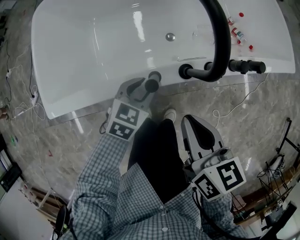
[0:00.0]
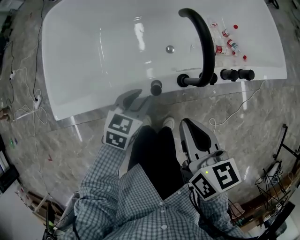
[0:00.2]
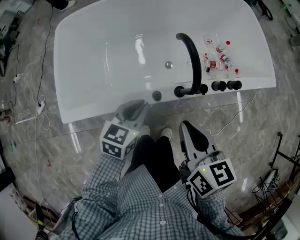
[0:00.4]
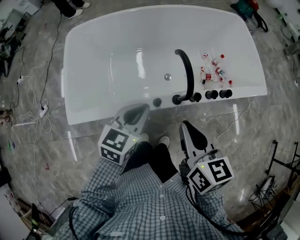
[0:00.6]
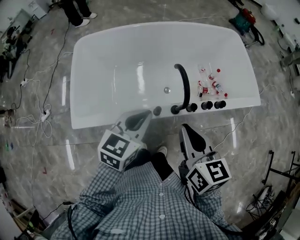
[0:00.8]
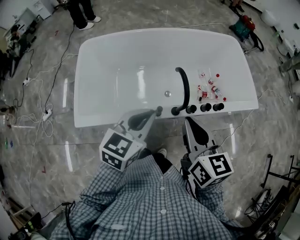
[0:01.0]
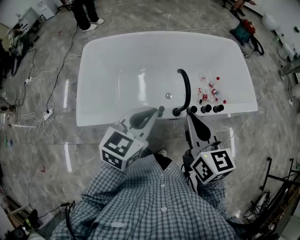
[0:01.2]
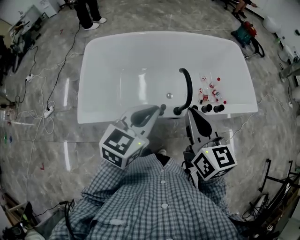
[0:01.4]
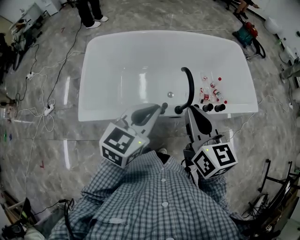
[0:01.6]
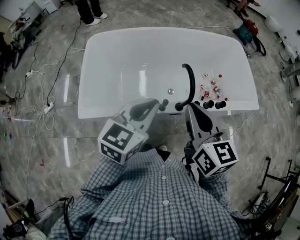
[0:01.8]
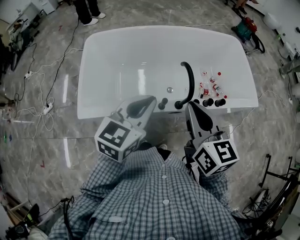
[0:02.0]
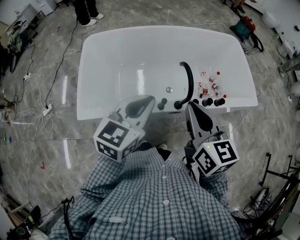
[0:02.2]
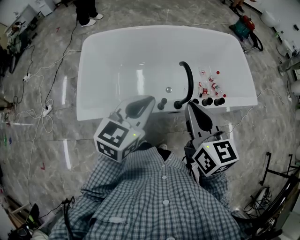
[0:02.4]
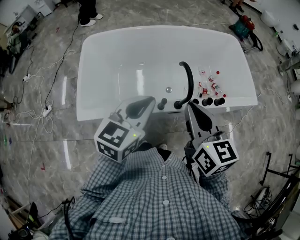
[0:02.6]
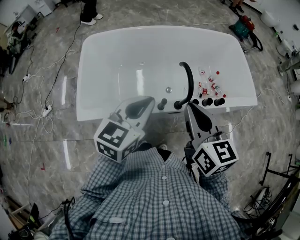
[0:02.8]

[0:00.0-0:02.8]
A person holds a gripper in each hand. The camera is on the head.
0:00.0 to 0:01.4: The grippers both shift upward by about 40 cm. The left gripper rotates roughly 30 degrees, and closes its fingers. Meanwhile the right gripper swivels roughly 30 degrees.
0:01.4 to 0:02.8: The grippers make only small movements.

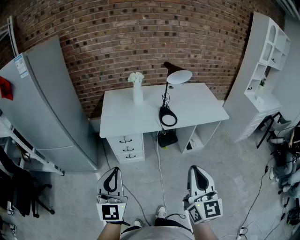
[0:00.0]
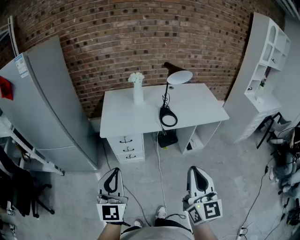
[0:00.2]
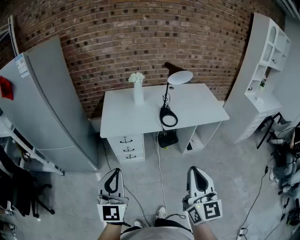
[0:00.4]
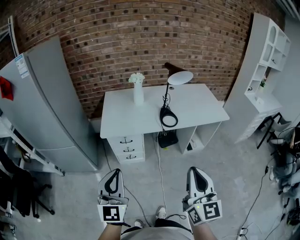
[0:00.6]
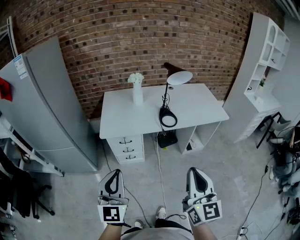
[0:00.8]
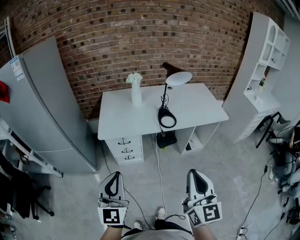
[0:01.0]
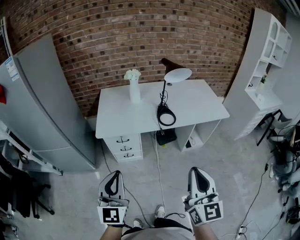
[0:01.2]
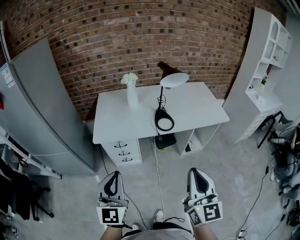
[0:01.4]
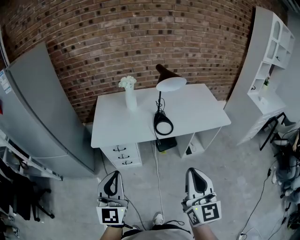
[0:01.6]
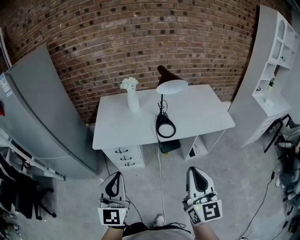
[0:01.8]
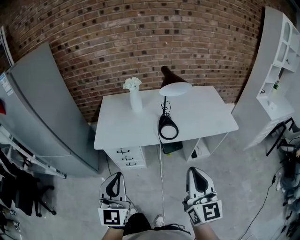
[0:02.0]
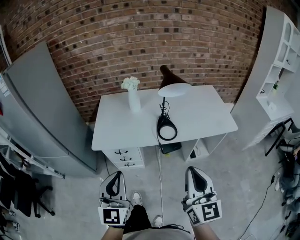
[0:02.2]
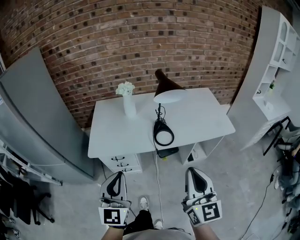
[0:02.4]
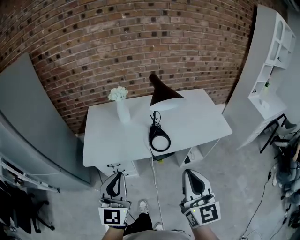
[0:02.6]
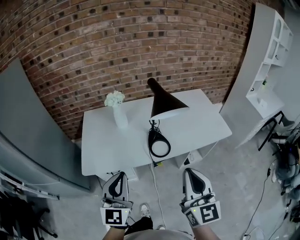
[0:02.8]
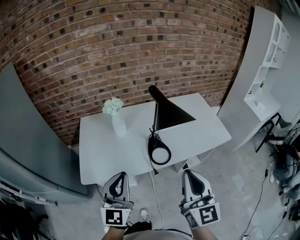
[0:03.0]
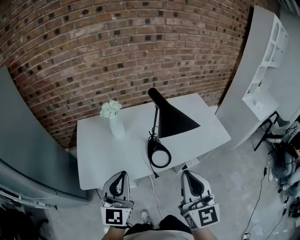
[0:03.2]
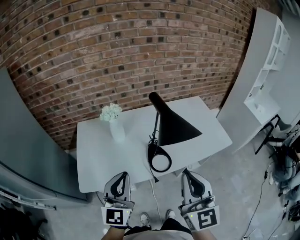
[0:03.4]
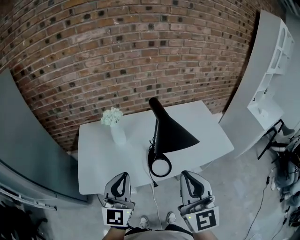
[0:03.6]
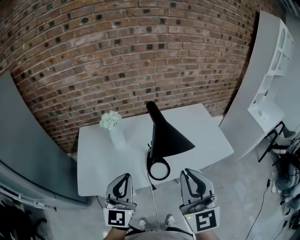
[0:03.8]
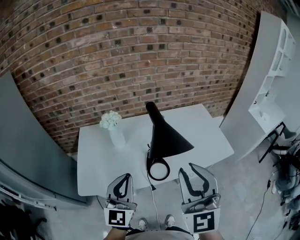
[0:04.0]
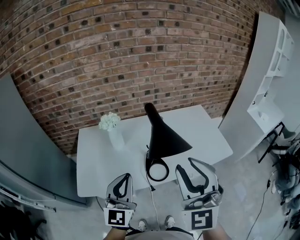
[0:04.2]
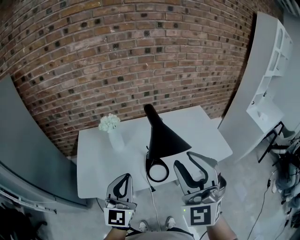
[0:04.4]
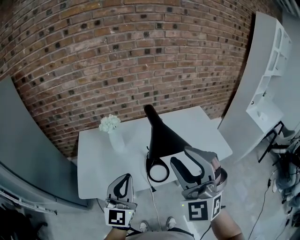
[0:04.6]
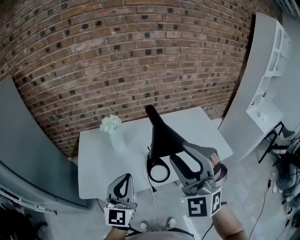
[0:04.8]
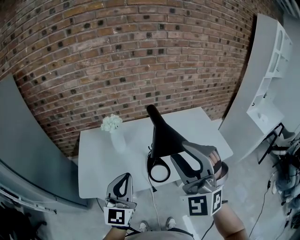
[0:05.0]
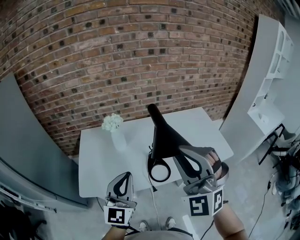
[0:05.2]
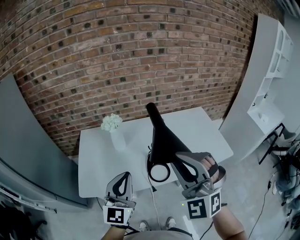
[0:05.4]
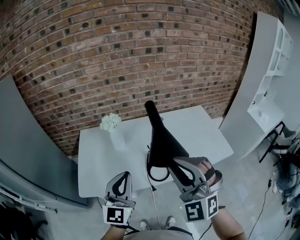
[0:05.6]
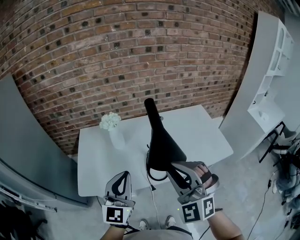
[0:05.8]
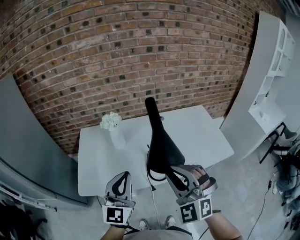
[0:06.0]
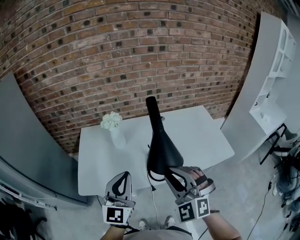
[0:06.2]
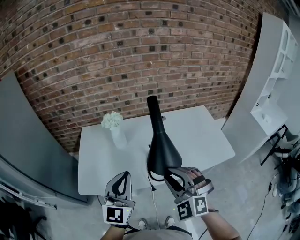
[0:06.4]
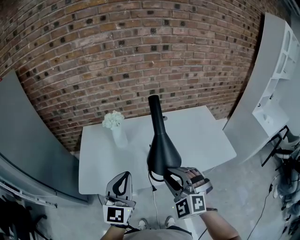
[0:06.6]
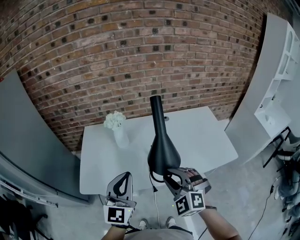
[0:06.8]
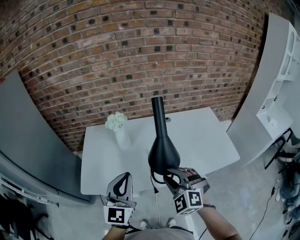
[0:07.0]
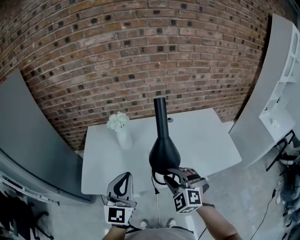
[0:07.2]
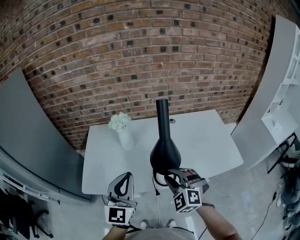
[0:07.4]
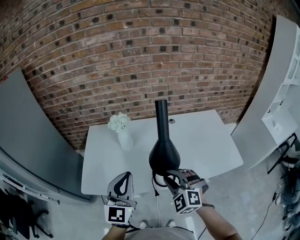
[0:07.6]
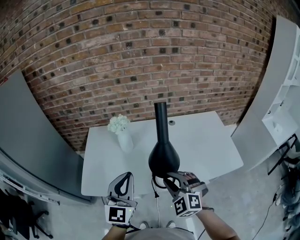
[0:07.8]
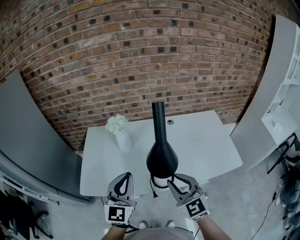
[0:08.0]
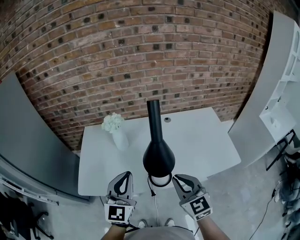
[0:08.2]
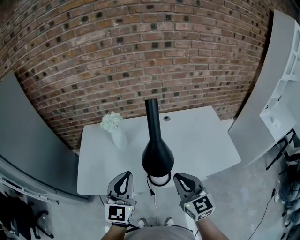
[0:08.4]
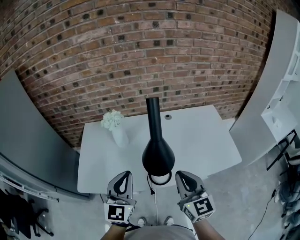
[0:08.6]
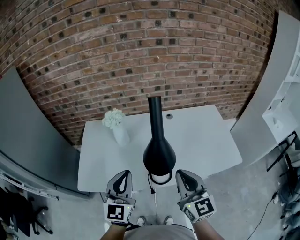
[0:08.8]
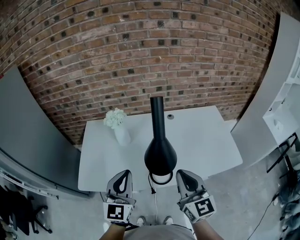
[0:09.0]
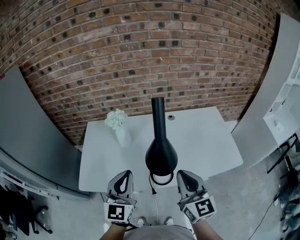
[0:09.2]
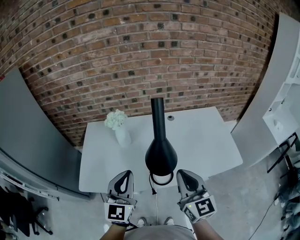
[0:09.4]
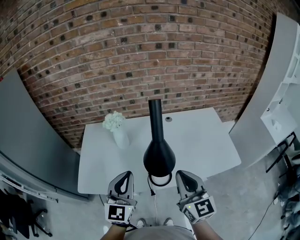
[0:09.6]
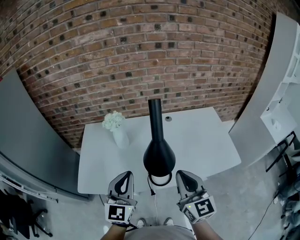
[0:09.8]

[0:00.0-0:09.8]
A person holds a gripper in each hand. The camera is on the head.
0:00.0 to 0:01.4: Both grippers move forward, some 5 cm.
0:01.4 to 0:02.8: Both grippers travel together forward, roughly 20 cm.
0:02.8 to 0:04.2: The right gripper travels forward and upward by about 15 cm, twists roughly 40 degrees counterclockwise, seen from behind, and opens its fingers, while the left gripper shifts some 15 cm forward.
0:04.2 to 0:05.6: The right gripper ends up some 5 cm from where it was, and rotates about 20 degrees.
0:05.6 to 0:07.0: The right gripper shifts approximately 15 cm downward, and changes its angle by some 20 degrees.
0:07.0 to 0:08.4: The right gripper goes about 5 cm to the right, twists approximately 50 degrees clockwise, seen from behind, and closes its fingers; the left gripper changes place by approximately 5 cm.
0:08.4 to 0:09.8: The grippers make only small movements.

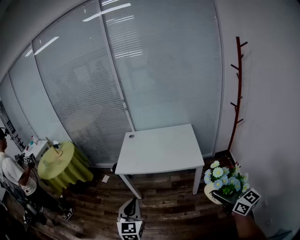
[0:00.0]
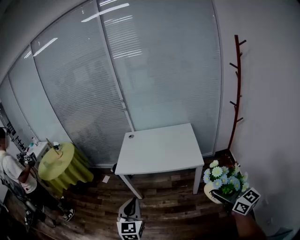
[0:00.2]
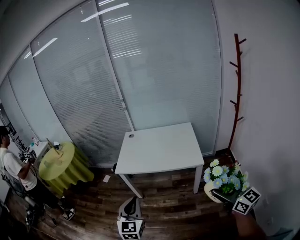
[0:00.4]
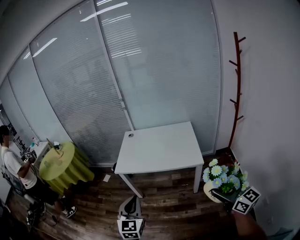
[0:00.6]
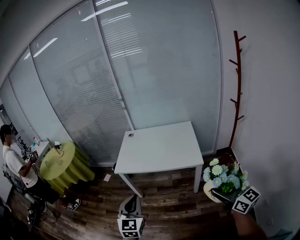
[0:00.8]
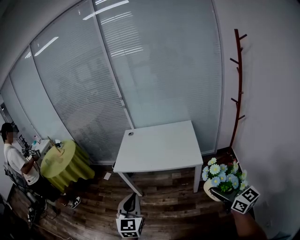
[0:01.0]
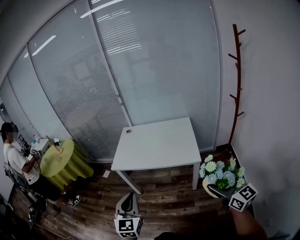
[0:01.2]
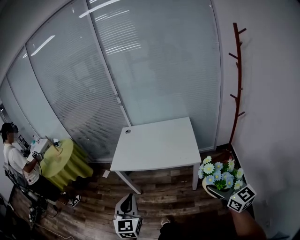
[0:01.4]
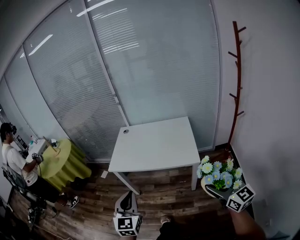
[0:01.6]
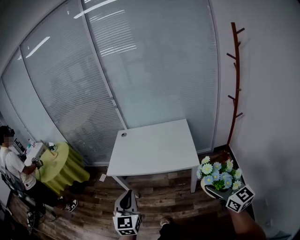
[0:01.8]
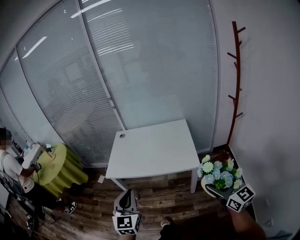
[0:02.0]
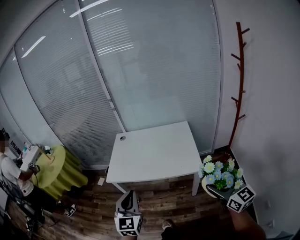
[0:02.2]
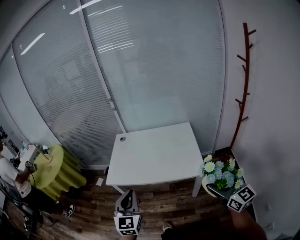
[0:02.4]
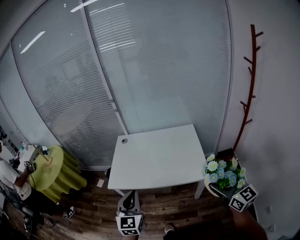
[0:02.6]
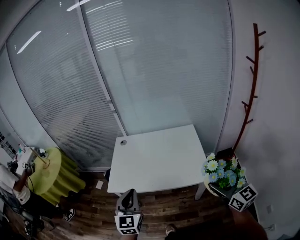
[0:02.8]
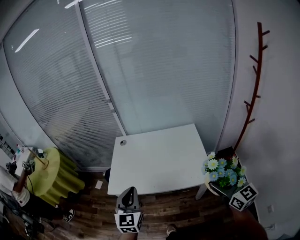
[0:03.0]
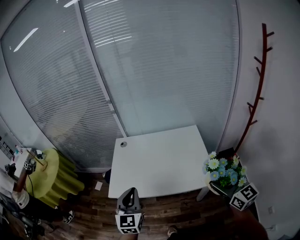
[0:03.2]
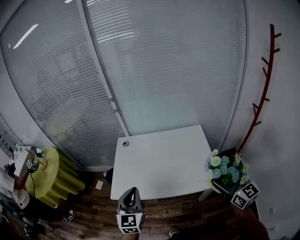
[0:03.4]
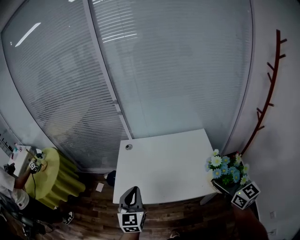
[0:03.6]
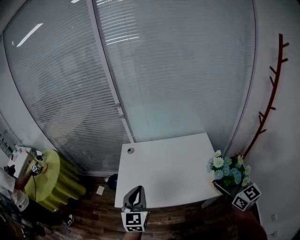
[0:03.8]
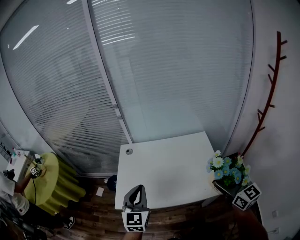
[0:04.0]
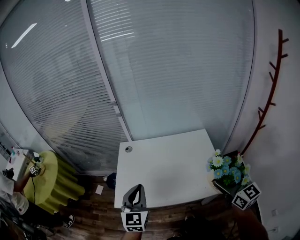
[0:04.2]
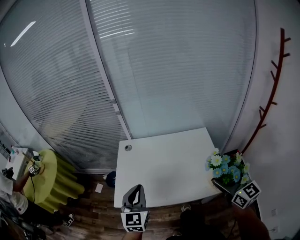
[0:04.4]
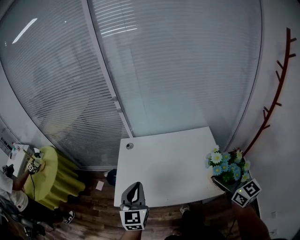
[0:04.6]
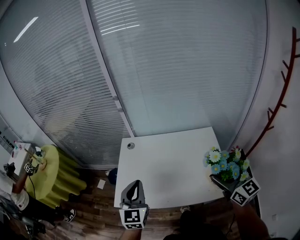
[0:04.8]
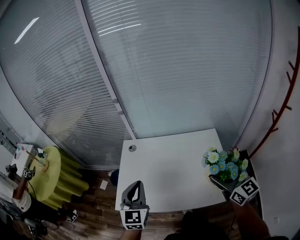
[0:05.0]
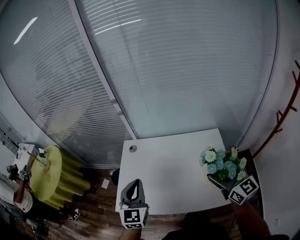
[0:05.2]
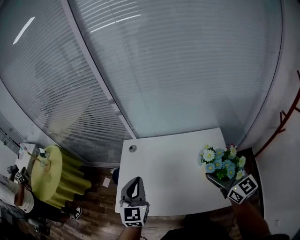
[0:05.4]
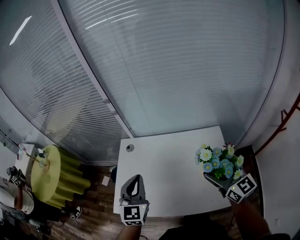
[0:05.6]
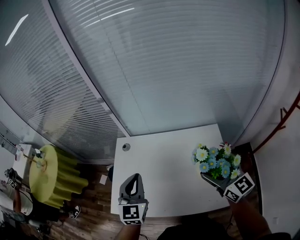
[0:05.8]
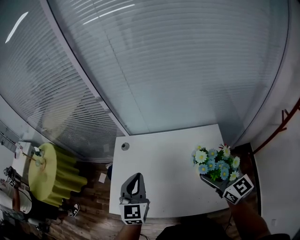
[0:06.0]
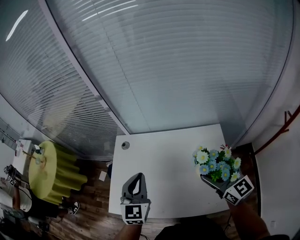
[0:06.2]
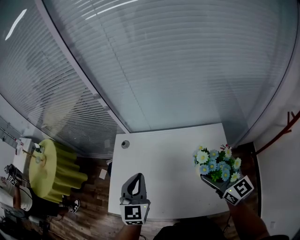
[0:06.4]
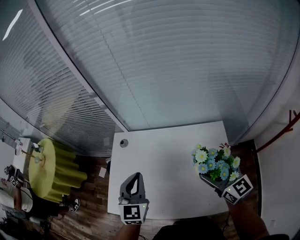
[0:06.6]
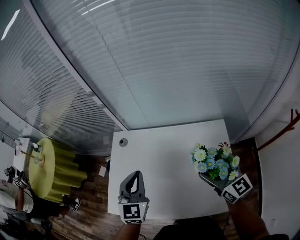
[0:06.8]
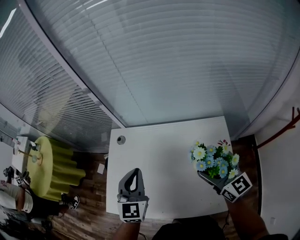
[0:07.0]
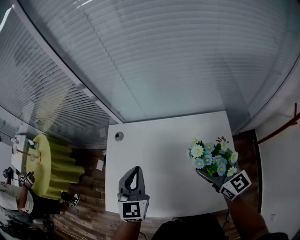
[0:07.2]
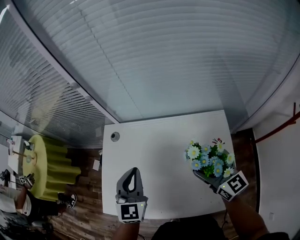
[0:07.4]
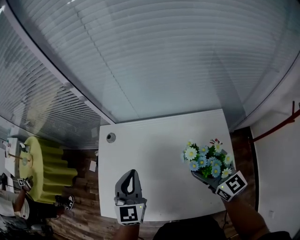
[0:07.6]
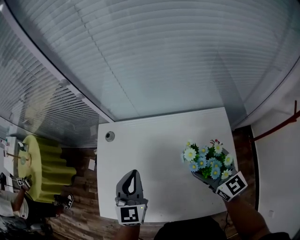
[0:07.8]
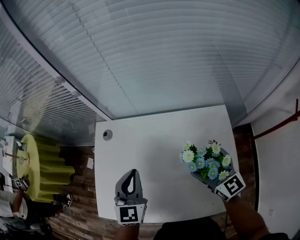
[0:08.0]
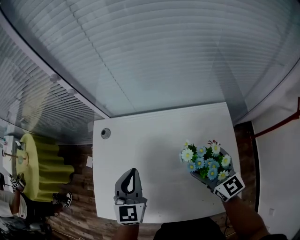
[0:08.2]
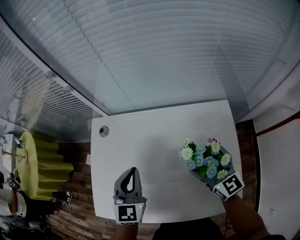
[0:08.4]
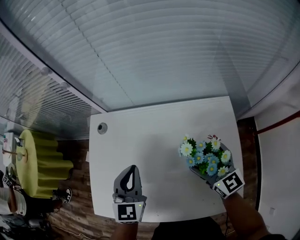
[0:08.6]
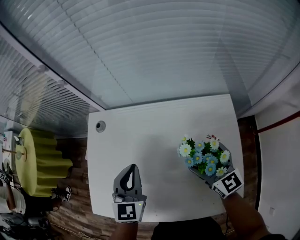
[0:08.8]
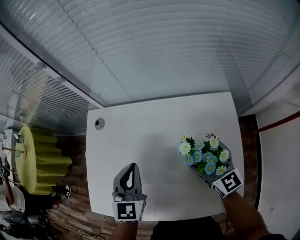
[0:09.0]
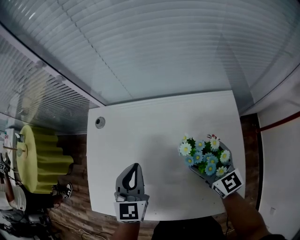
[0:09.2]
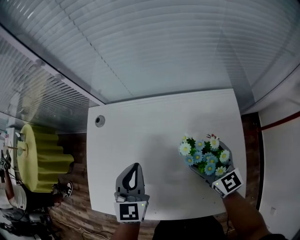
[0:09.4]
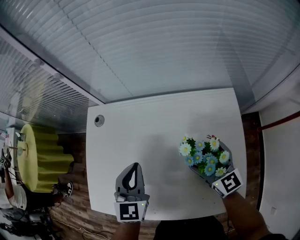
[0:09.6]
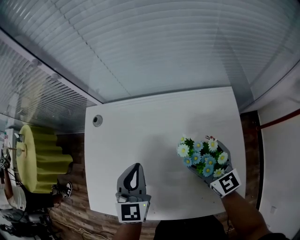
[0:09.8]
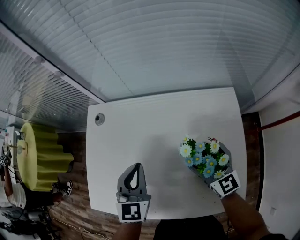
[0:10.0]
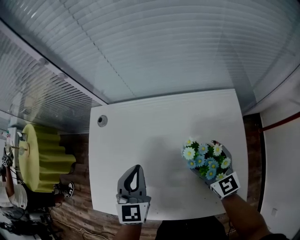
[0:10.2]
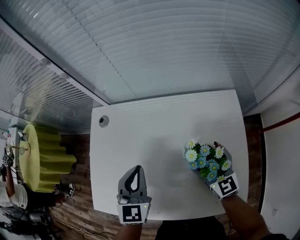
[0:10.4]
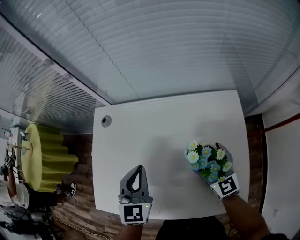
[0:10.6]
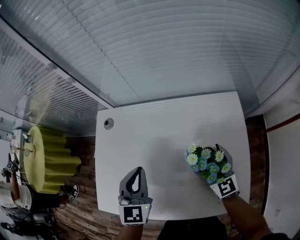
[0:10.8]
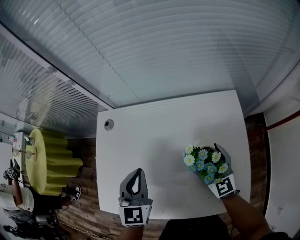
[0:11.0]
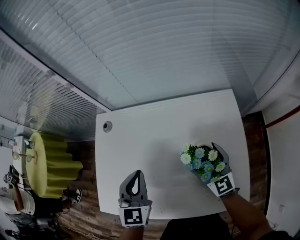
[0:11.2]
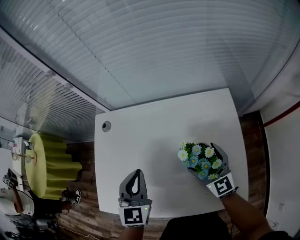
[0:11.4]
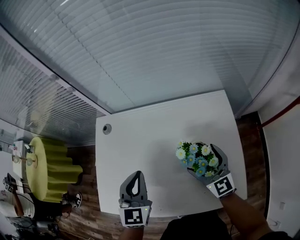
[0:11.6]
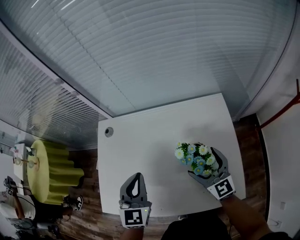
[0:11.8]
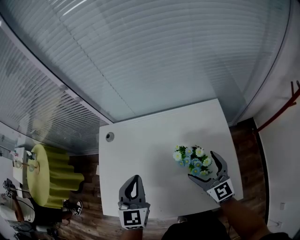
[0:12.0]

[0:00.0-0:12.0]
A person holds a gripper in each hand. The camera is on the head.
0:00.0 to 0:01.6: The right gripper moves to the right and forward, some 10 cm, while the left gripper goes some 5 cm to the right.
0:01.6 to 0:03.0: The grippers both shift forward by some 25 cm.
0:03.0 to 0:04.4: The left gripper goes approximately 15 cm forward. Meanwhile the right gripper is displaced forward and to the left by approximately 15 cm.
0:04.4 to 0:06.0: The left gripper moves forward and to the right, about 20 cm. The right gripper travels forward by about 20 cm.
0:06.0 to 0:07.6: The grippers both shift downward and forward by about 15 cm.
0:07.6 to 0:09.0: Both grippers move downward, some 10 cm.
0:09.0 to 0:10.4: The grippers stay close to where they were, moving slightly.
0:10.4 to 0:12.0: The left gripper is displaced upward by about 5 cm. Meanwhile the right gripper travels backward and upward by approximately 10 cm.
